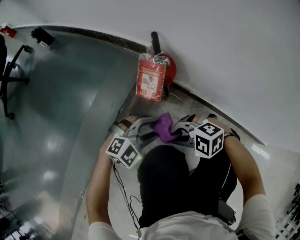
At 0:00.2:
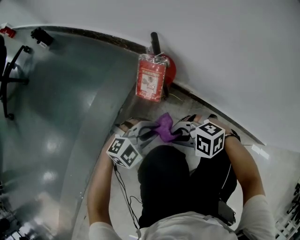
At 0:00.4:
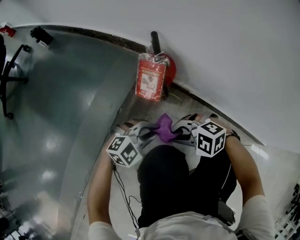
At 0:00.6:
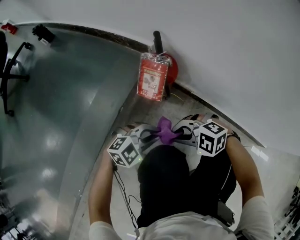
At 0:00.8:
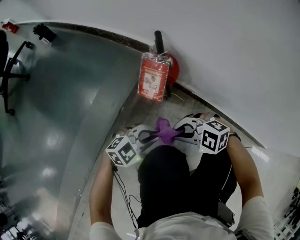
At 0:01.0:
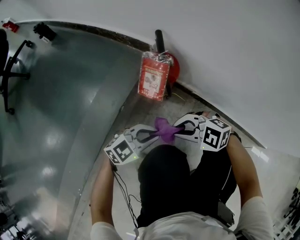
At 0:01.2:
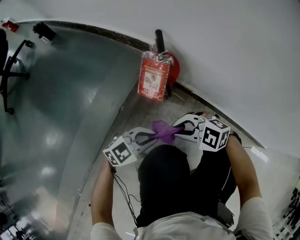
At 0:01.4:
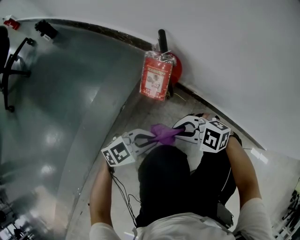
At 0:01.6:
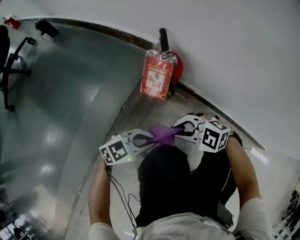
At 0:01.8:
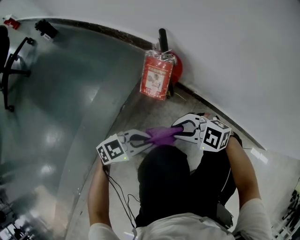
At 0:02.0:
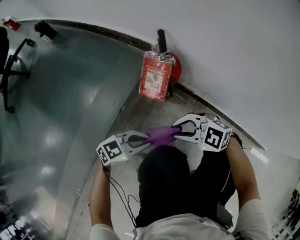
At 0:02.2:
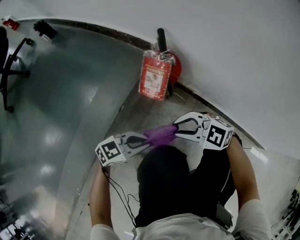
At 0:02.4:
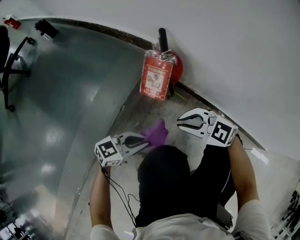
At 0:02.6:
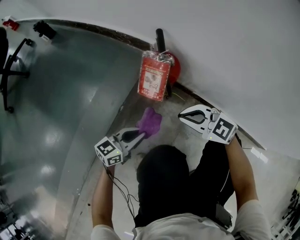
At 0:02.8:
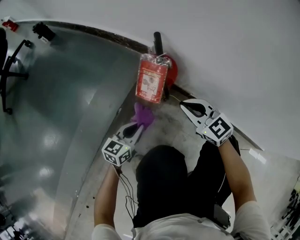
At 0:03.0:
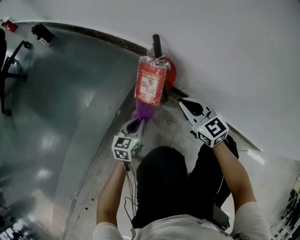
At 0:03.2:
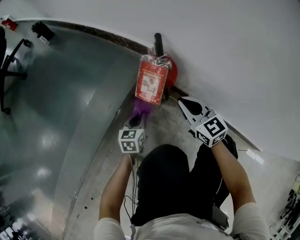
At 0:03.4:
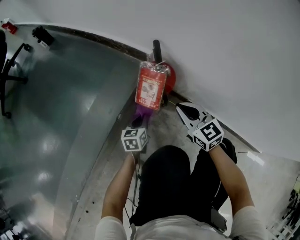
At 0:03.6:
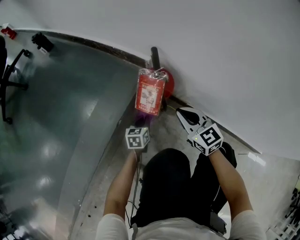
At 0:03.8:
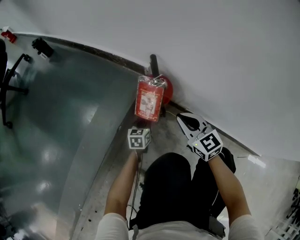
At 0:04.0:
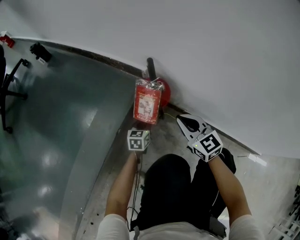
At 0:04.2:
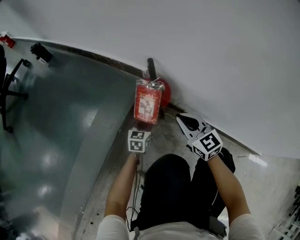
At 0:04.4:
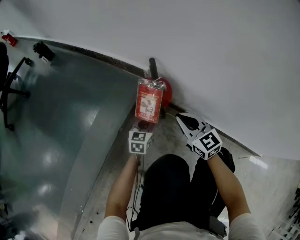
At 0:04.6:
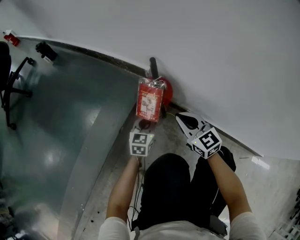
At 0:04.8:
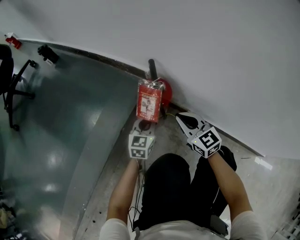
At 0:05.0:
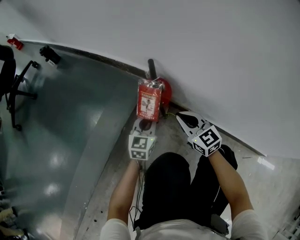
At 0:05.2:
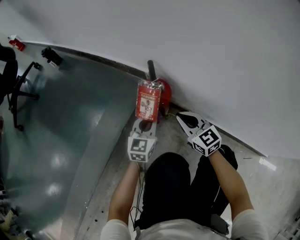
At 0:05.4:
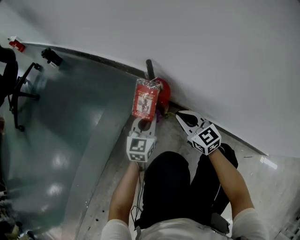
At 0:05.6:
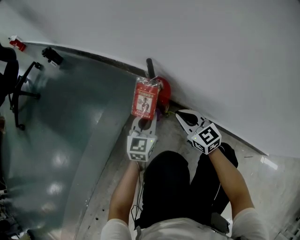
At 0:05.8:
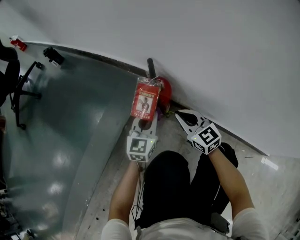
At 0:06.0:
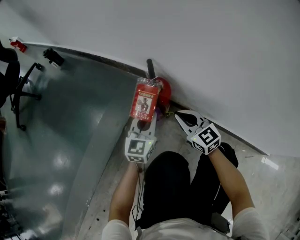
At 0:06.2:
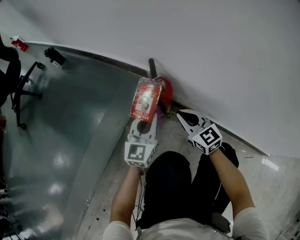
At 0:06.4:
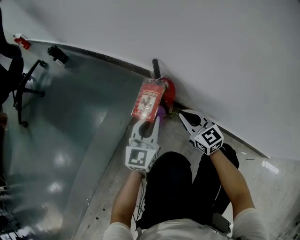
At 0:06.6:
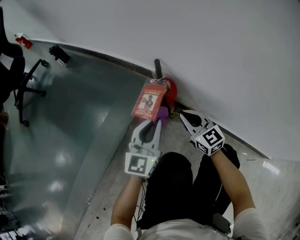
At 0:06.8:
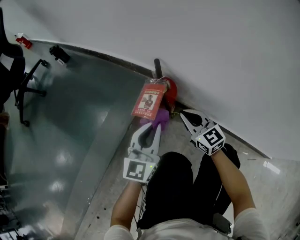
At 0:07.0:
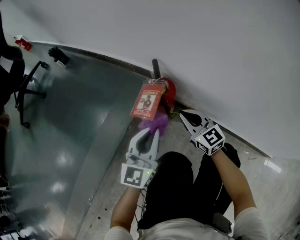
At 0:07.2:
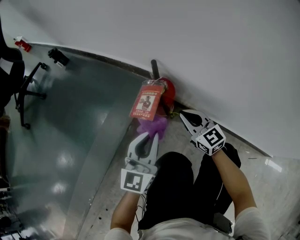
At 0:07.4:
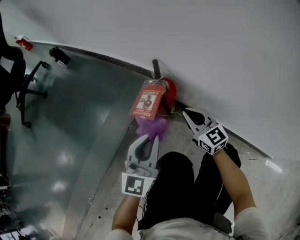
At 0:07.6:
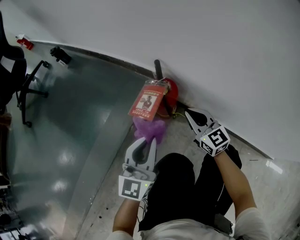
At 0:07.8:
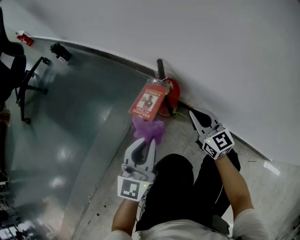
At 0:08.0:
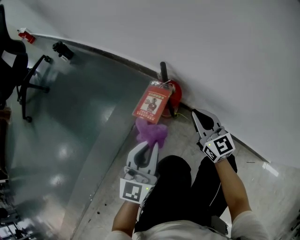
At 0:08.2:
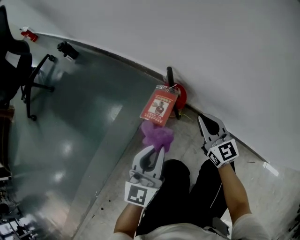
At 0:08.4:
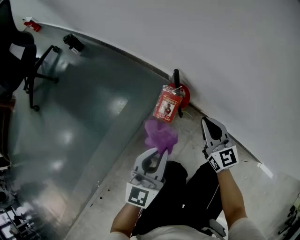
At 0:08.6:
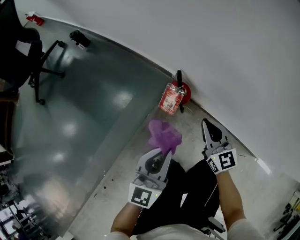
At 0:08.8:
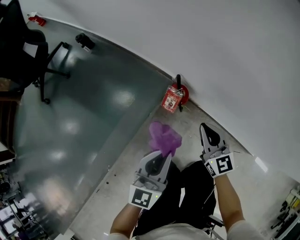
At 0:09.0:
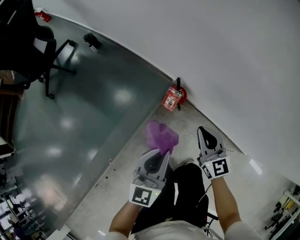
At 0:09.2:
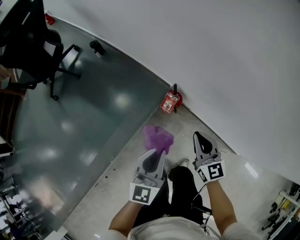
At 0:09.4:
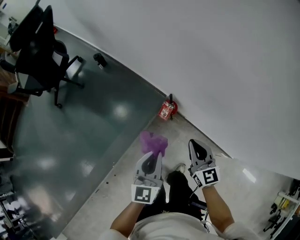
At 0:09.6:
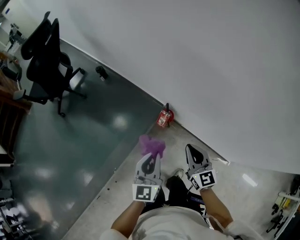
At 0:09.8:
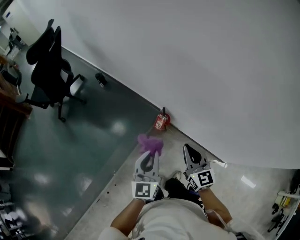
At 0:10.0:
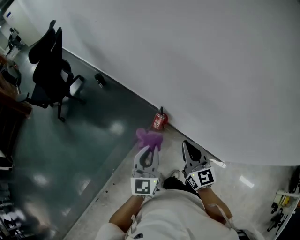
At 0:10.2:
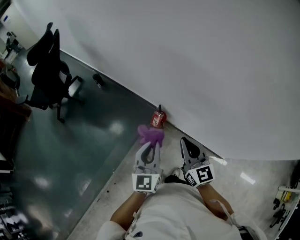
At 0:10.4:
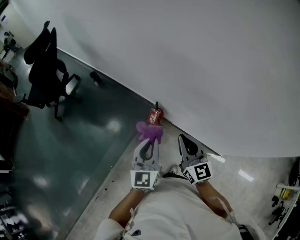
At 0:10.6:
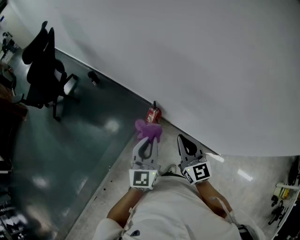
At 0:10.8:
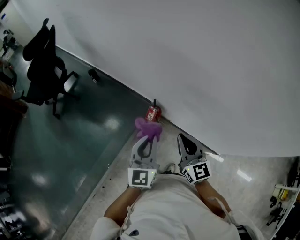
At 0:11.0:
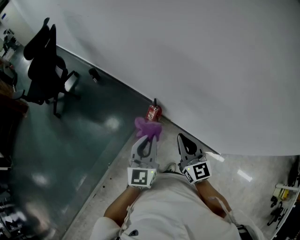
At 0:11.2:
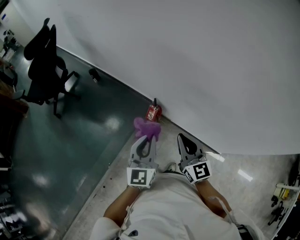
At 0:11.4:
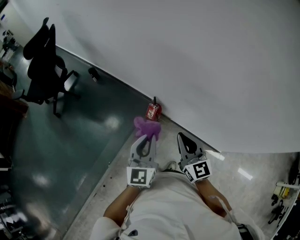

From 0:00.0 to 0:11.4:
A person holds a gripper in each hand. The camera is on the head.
From 0:00.0 to 0:01.4: The left gripper shifts by some 5 cm, swivels about 30 degrees, and closes up.
From 0:01.4 to 0:02.8: The left gripper changes place by some 10 cm, and turns by about 50 degrees. The right gripper shifts by approximately 15 cm, and turns by some 50 degrees.
From 0:02.8 to 0:04.2: The left gripper travels forward, downward and to the right by about 15 cm.
From 0:04.2 to 0:05.6: The left gripper goes roughly 15 cm upward, and turns by about 20 degrees.
From 0:05.6 to 0:07.2: The left gripper goes approximately 15 cm upward and backward.
From 0:07.2 to 0:08.6: Both grippers move upward, roughly 20 cm.
From 0:08.6 to 0:10.0: Both grippers move upward, approximately 50 cm.
From 0:10.0 to 0:11.4: The grippers stay close to where they were, moving slightly.

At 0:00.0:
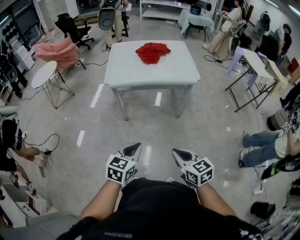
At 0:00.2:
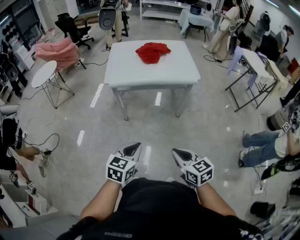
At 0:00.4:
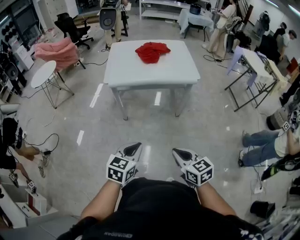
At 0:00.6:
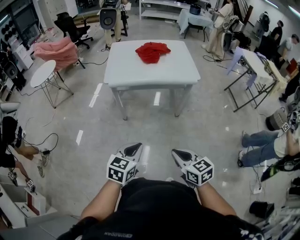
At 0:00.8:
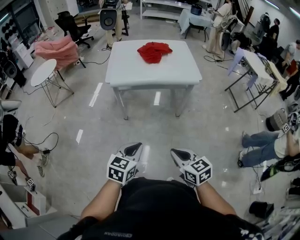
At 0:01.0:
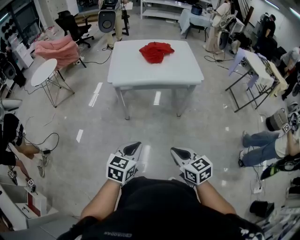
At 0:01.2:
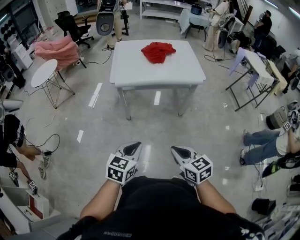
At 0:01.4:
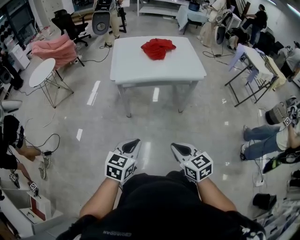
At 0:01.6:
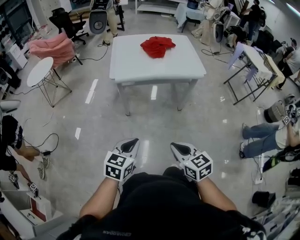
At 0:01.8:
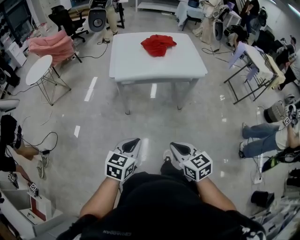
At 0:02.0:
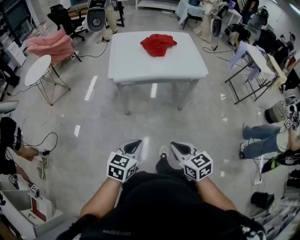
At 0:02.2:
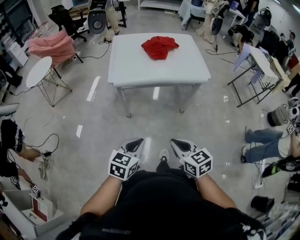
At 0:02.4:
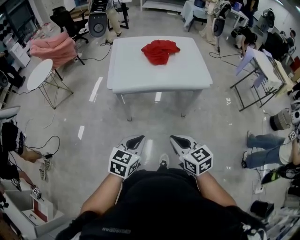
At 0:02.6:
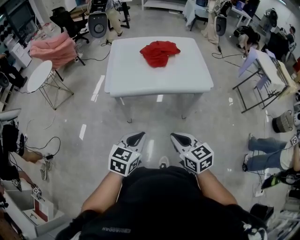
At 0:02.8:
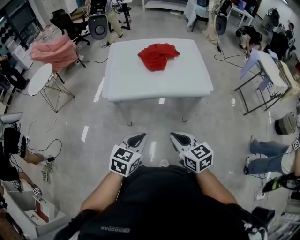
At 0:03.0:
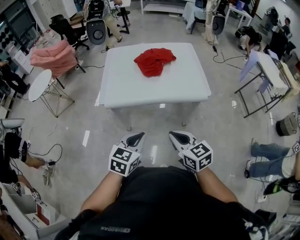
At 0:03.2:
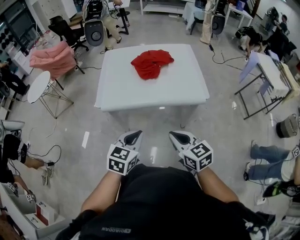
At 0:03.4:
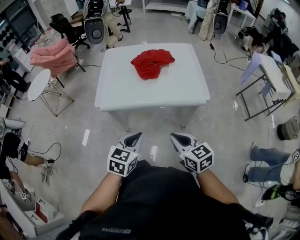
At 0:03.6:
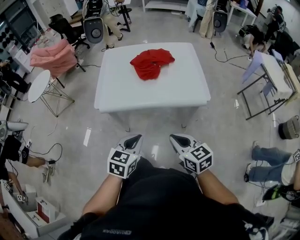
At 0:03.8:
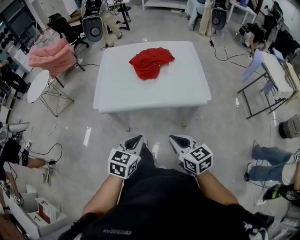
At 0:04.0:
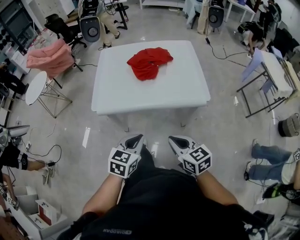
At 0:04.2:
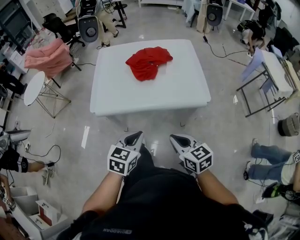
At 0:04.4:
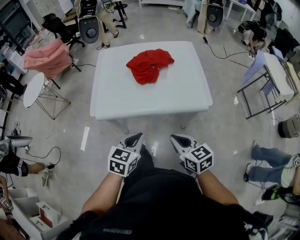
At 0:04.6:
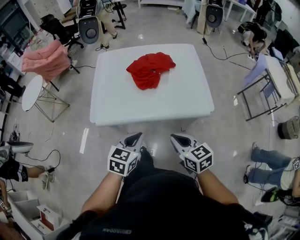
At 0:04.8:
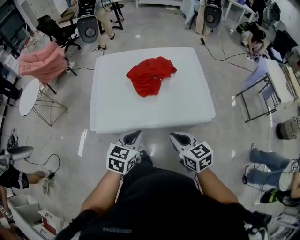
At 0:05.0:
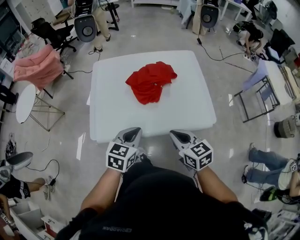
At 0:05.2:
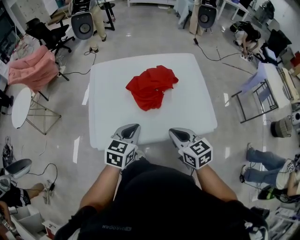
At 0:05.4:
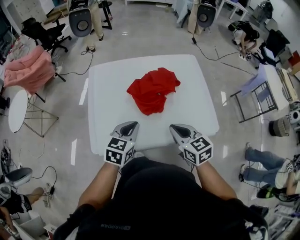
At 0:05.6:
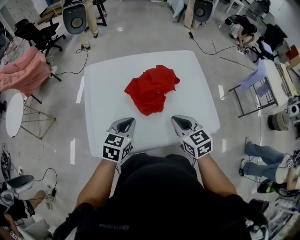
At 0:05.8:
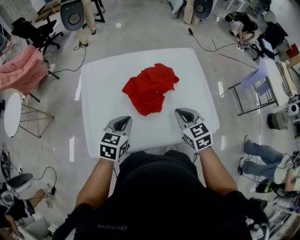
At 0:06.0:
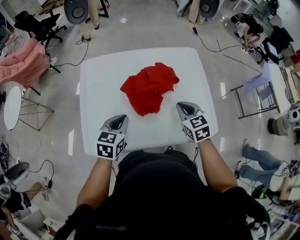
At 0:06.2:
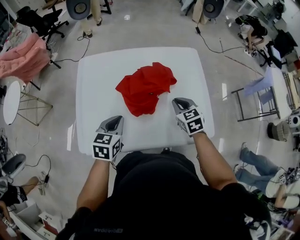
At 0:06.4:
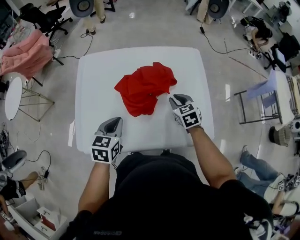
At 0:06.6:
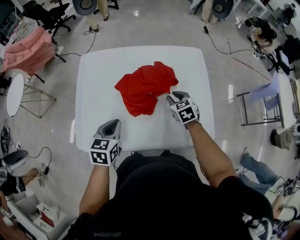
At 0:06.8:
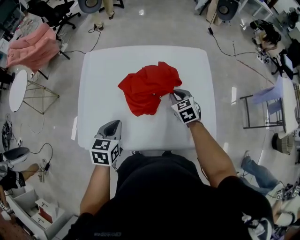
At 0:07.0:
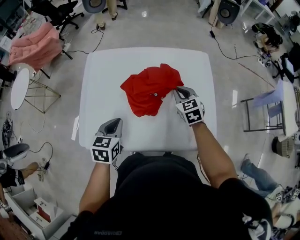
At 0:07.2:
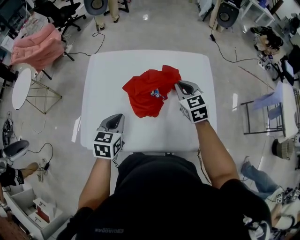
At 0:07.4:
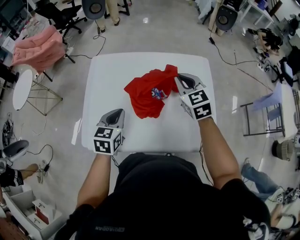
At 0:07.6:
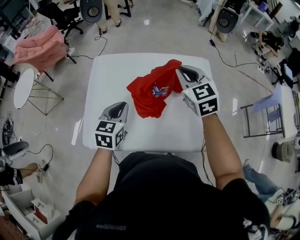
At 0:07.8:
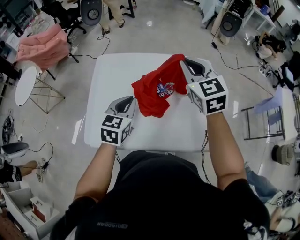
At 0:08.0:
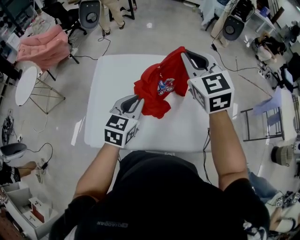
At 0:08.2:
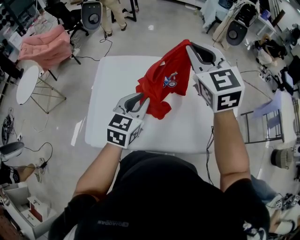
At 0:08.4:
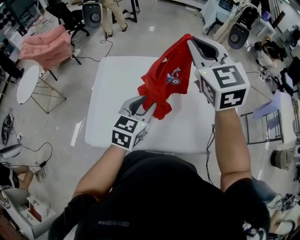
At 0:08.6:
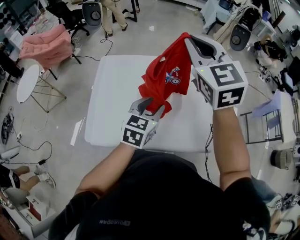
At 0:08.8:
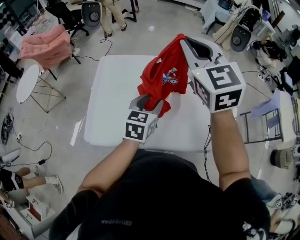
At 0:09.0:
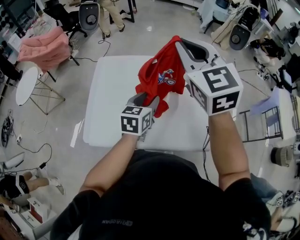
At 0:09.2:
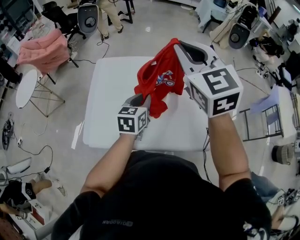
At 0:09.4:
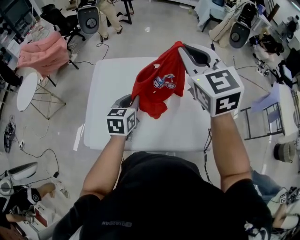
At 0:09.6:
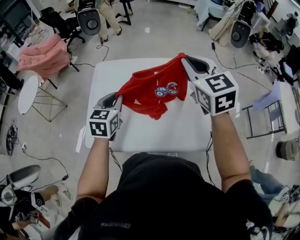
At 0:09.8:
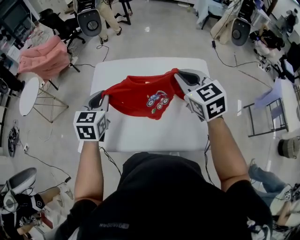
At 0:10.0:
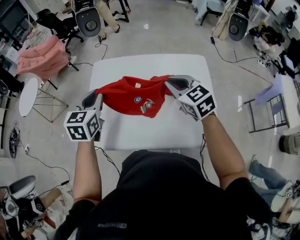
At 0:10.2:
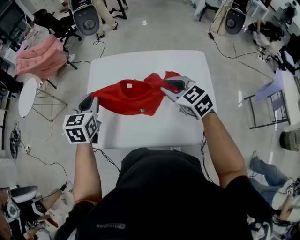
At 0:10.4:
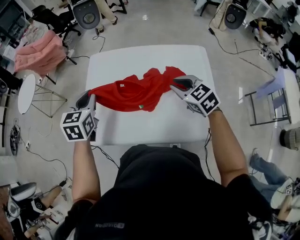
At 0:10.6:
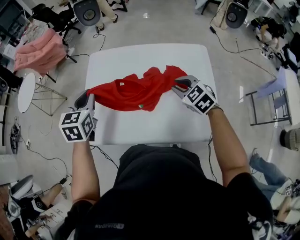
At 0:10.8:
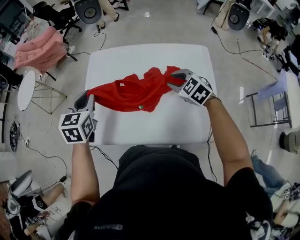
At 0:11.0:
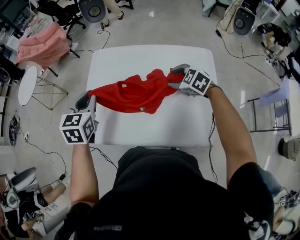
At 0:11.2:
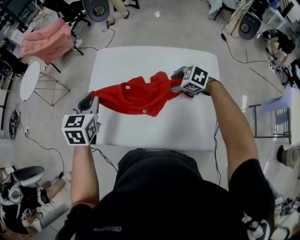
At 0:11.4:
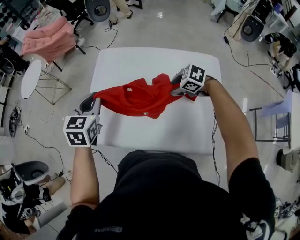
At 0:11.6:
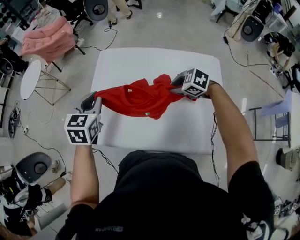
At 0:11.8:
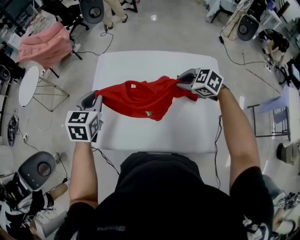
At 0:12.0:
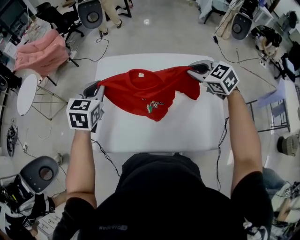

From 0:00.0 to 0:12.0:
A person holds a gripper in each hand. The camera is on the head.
From 0:00.0 to 0:01.6: Both grippers travel together to the left, about 10 cm.
From 0:01.6 to 0:03.0: The left gripper moves forward and to the right, roughly 30 cm. Meanwhile the right gripper moves forward, about 30 cm.
From 0:03.0 to 0:04.4: The right gripper shifts roughly 10 cm forward and to the right; the left gripper moves forward, approximately 10 cm.
From 0:04.4 to 0:06.0: The two grippers go roughly 35 cm forward. The right gripper swivels some 20 degrees.
From 0:06.0 to 0:07.6: The right gripper goes some 20 cm upward and forward, swivels some 20 degrees, and opens and closes again, while the left gripper changes place by some 5 cm.
From 0:07.6 to 0:09.0: The left gripper travels to the right by roughly 10 cm, and opens. Meanwhile the right gripper goes roughly 20 cm upward.
From 0:09.0 to 0:10.4: The left gripper moves to the left, roughly 20 cm, changes its angle by approximately 20 degrees, and closes up; the right gripper moves downward, roughly 25 cm, and changes its angle by some 30 degrees.
From 0:10.4 to 0:12.0: The left gripper changes place by some 5 cm, while the right gripper reaches about 10 cm downward, then returns, and opens, then closes again.
